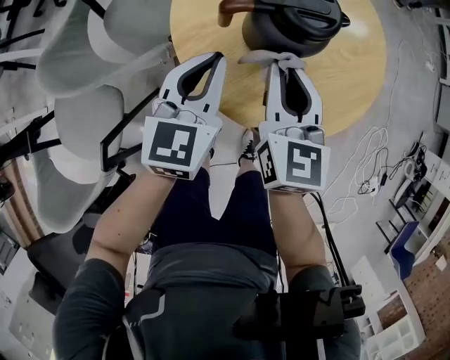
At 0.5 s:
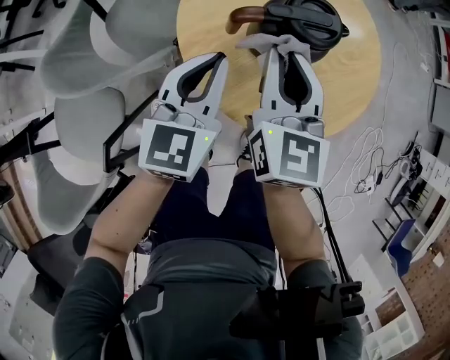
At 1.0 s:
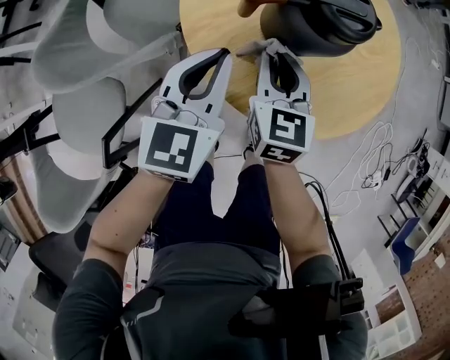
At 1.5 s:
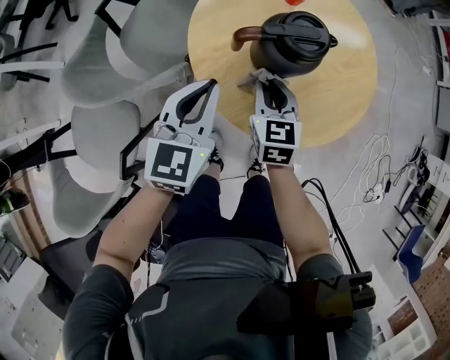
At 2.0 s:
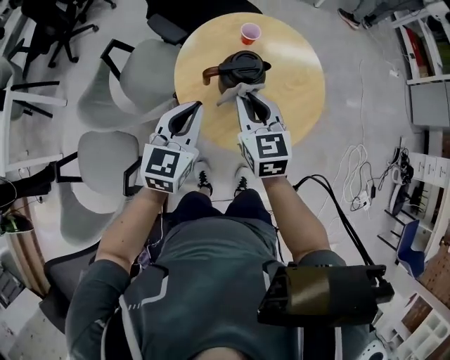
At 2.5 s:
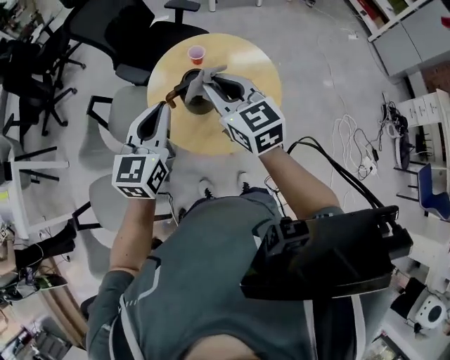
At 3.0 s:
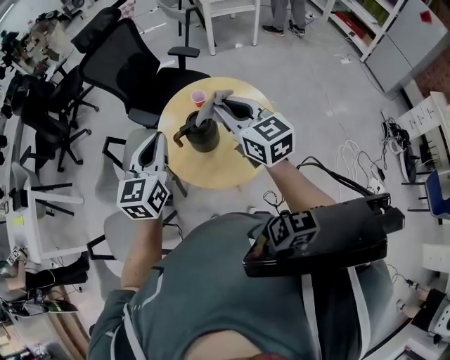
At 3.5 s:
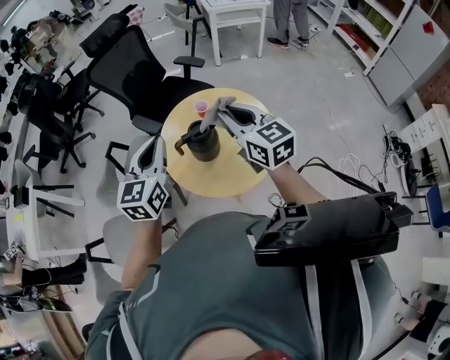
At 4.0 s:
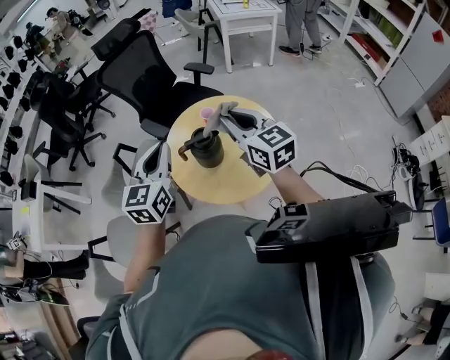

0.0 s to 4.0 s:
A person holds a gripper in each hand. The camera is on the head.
0.0 to 2.0 s: The right gripper swings up and down, roughly 20 cm each way, with 2 reversals. Meanwhile the left gripper moves upward, roughly 15 cm.
2.0 to 4.0 s: The right gripper travels upward and to the right by roughly 25 cm. The left gripper is displaced upward by some 20 cm.

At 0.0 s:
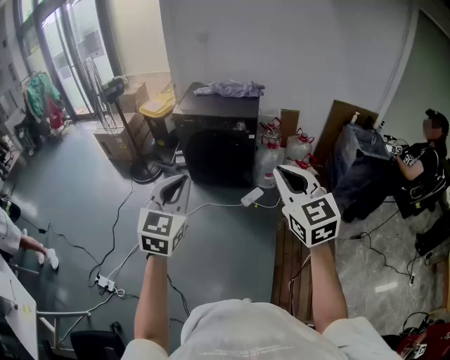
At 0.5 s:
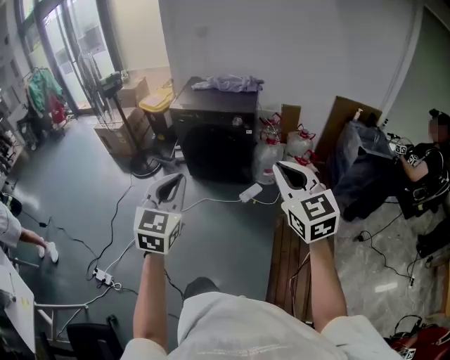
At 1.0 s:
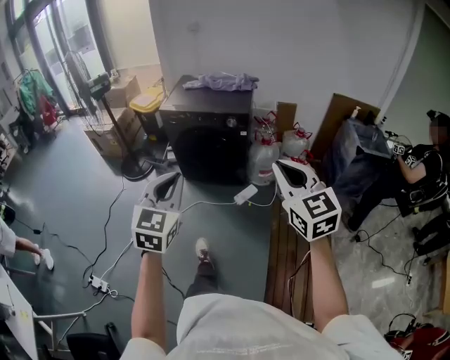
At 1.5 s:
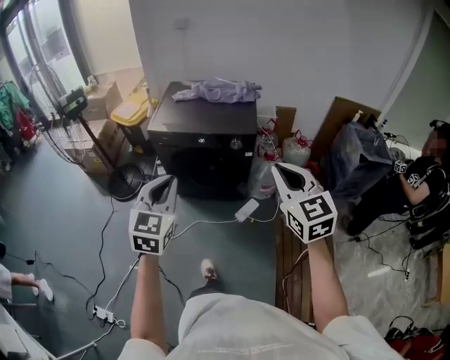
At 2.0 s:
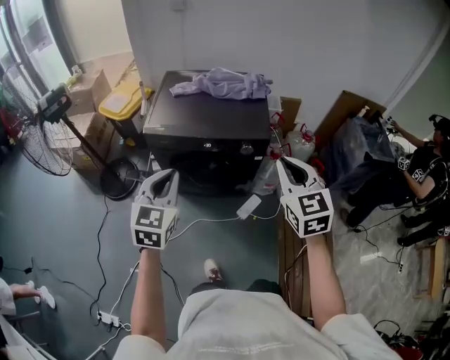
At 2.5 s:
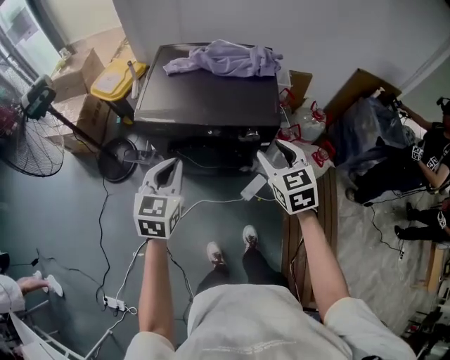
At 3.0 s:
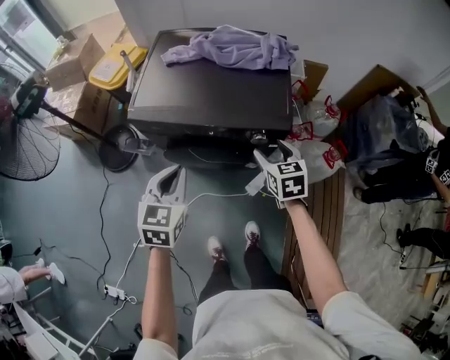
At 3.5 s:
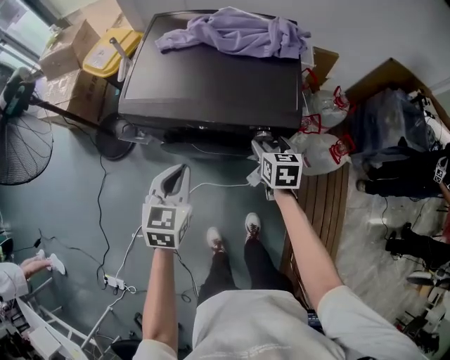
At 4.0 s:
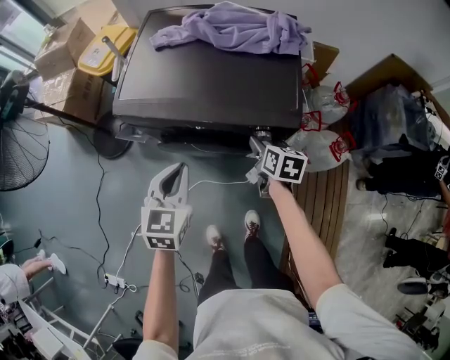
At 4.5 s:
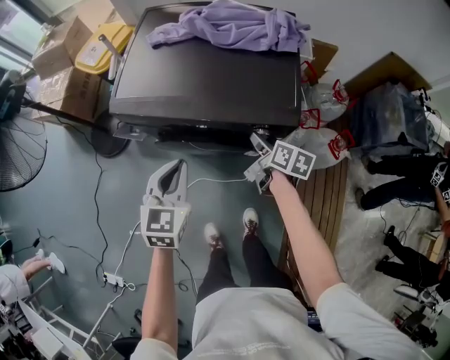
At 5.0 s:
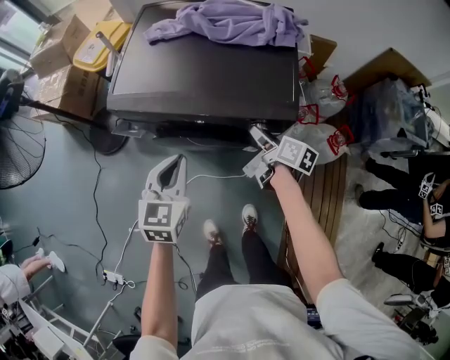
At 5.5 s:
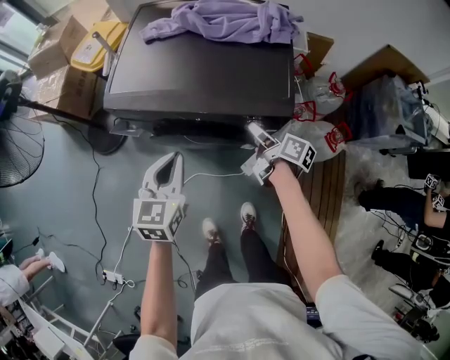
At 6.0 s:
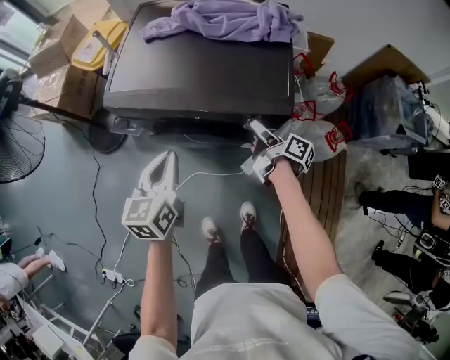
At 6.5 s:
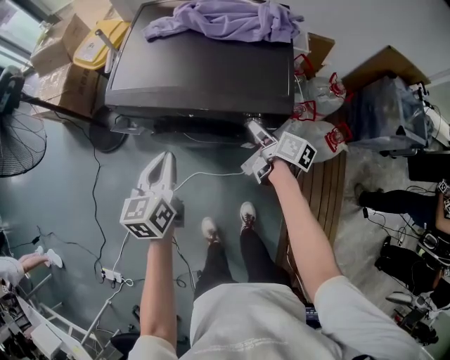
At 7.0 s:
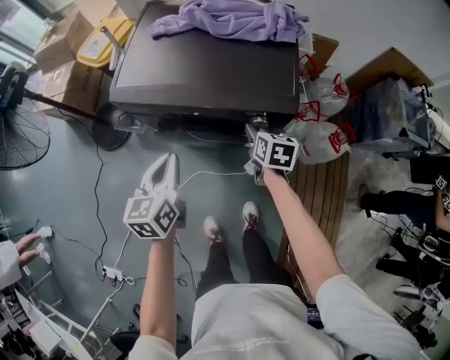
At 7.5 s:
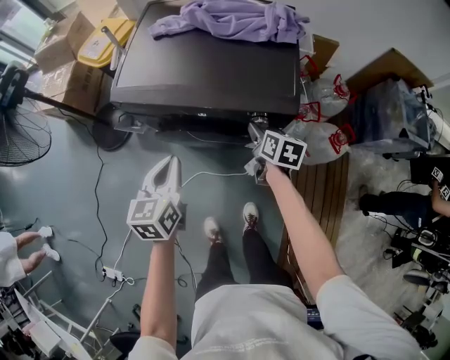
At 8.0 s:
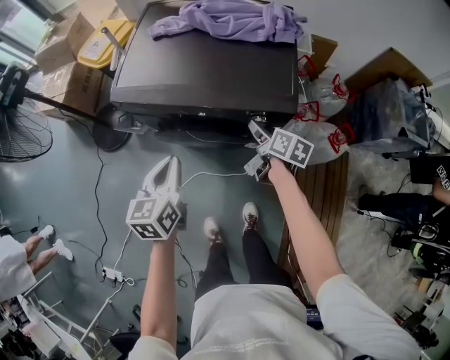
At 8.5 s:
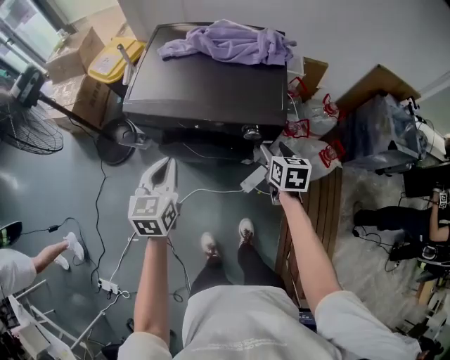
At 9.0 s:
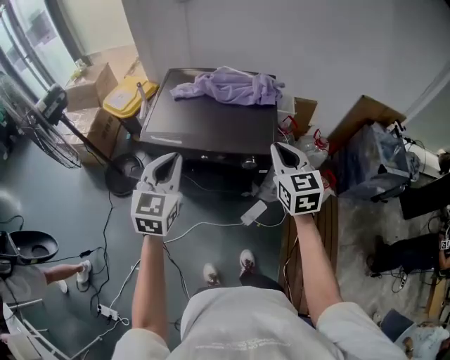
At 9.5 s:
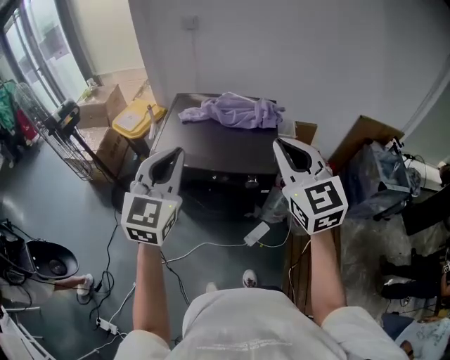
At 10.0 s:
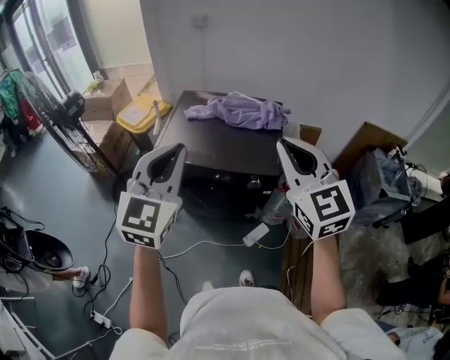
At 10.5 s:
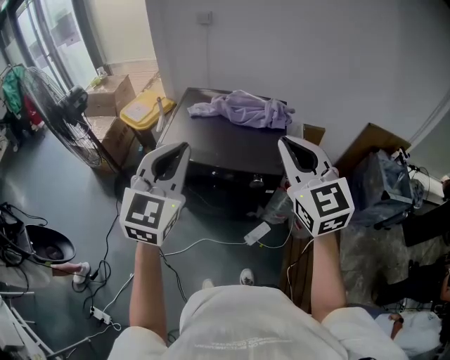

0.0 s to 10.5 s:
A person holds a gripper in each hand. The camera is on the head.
0.0 to 2.0 s: The two grippers travel together, forward, approximately 50 cm.
2.0 to 4.0 s: The right gripper goes some 40 cm downward and forward, rolls clockwise, seen from behind, by roughly 40 degrees, and opens, while the left gripper goes about 20 cm downward and forward.
4.0 to 6.5 s: The left gripper rotates roughly 30 degrees. Meanwhile the right gripper changes its angle by about 30 degrees.
6.5 to 8.5 s: The right gripper goes about 10 cm upward and backward, and rotates around the line of its fingers by approximately 40 degrees, counterclockwise from behind.
8.5 to 10.5 s: The two grippers go about 35 cm upward. The left gripper swivels approximately 40 degrees. The right gripper tilts its fingers roughly 40 degrees upward, and closes.

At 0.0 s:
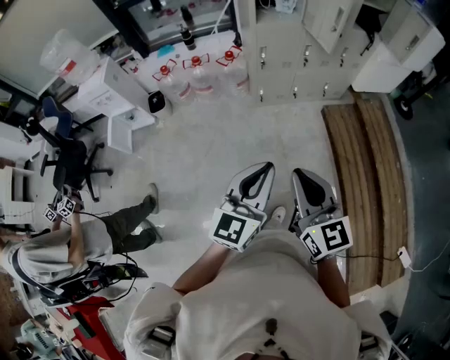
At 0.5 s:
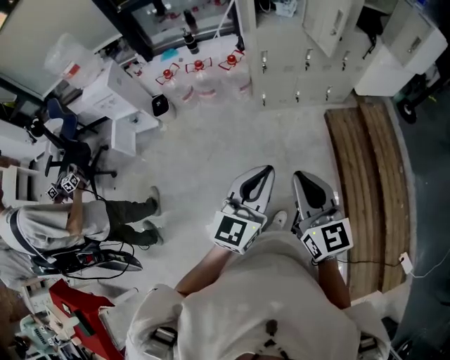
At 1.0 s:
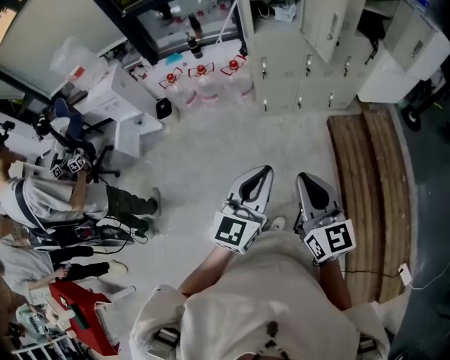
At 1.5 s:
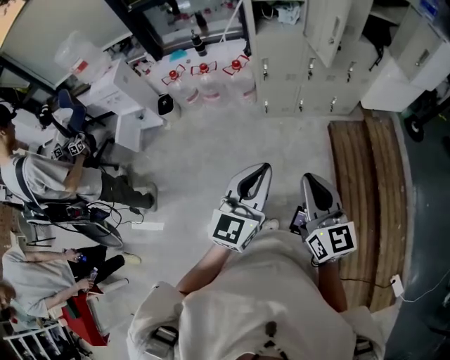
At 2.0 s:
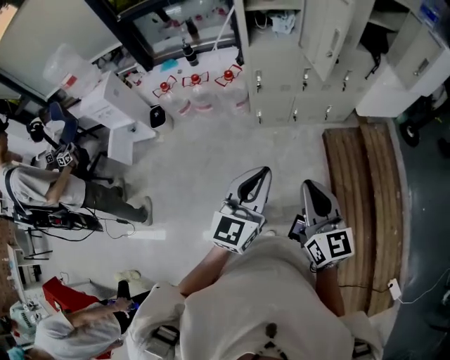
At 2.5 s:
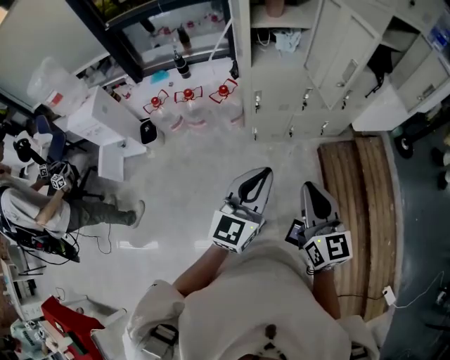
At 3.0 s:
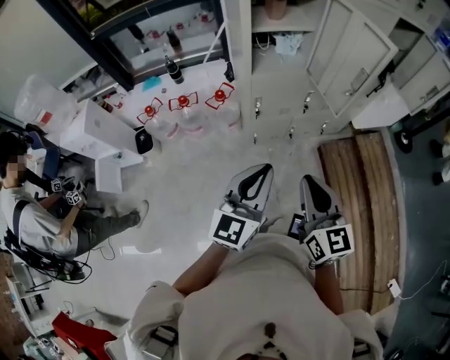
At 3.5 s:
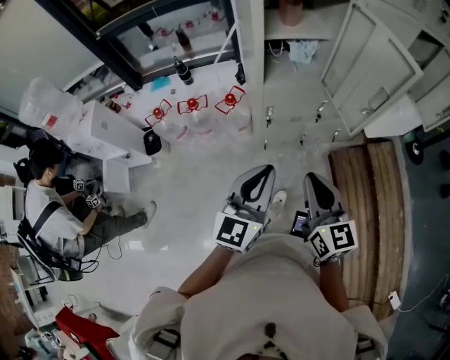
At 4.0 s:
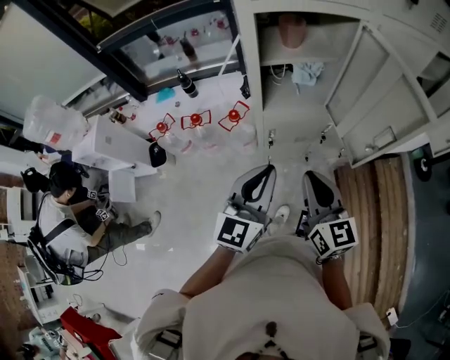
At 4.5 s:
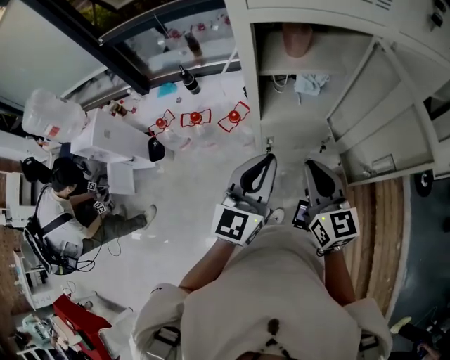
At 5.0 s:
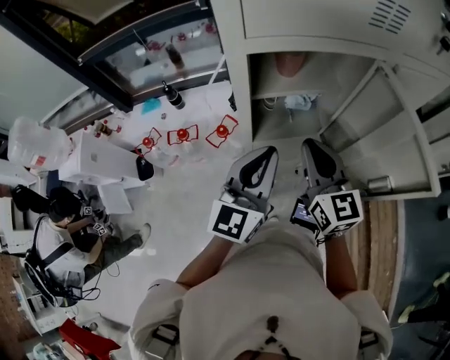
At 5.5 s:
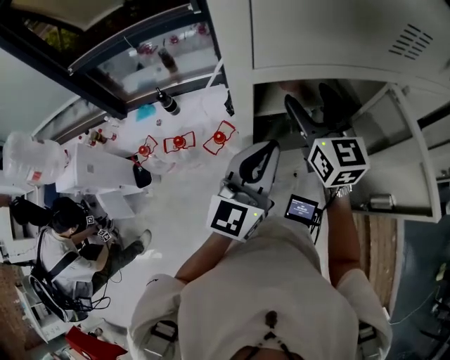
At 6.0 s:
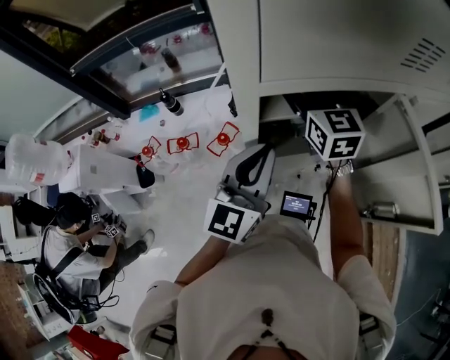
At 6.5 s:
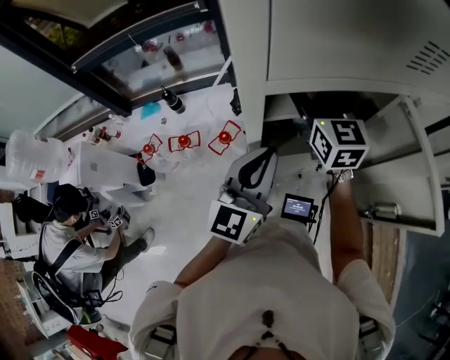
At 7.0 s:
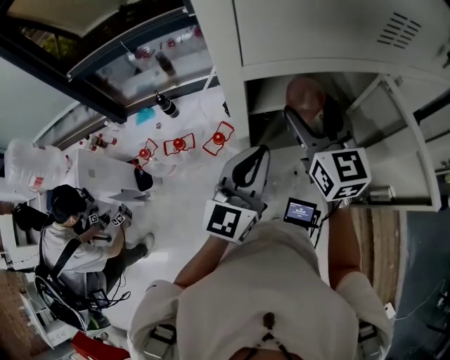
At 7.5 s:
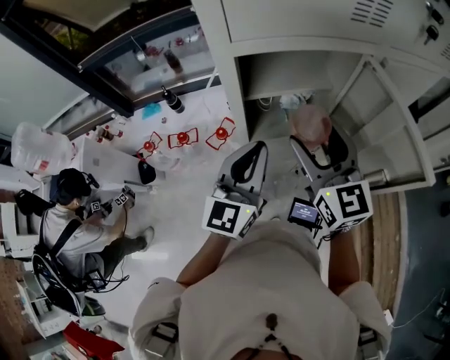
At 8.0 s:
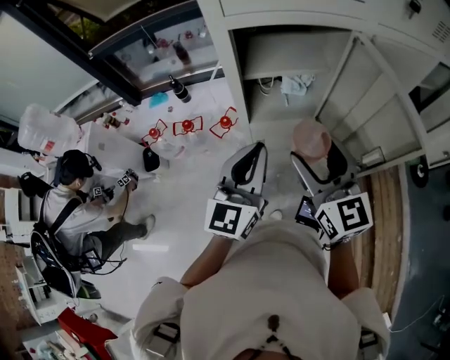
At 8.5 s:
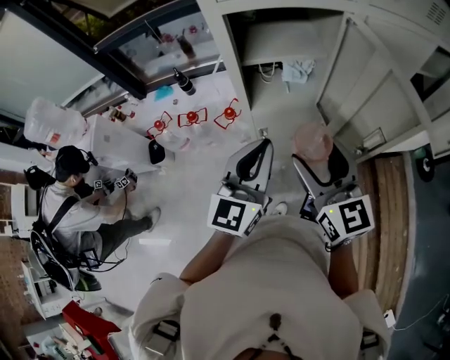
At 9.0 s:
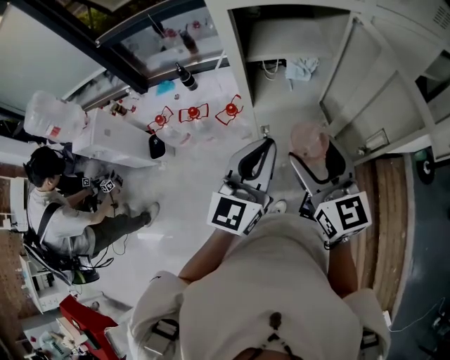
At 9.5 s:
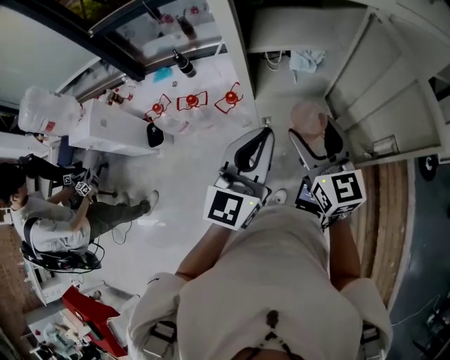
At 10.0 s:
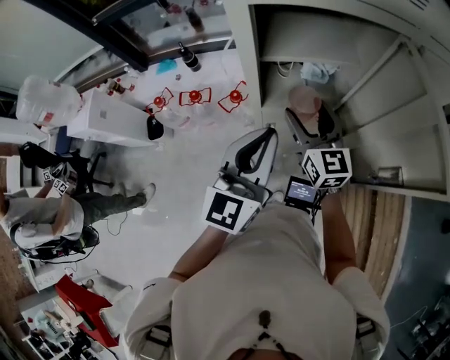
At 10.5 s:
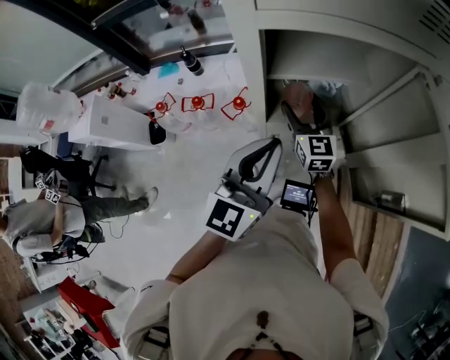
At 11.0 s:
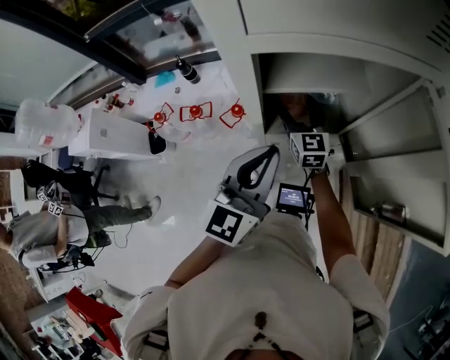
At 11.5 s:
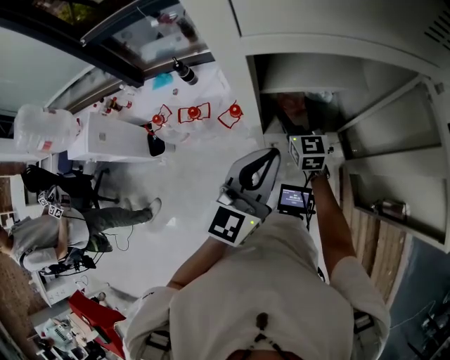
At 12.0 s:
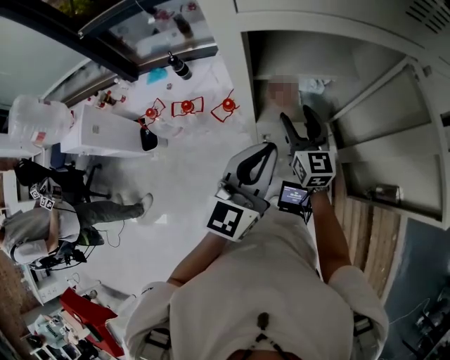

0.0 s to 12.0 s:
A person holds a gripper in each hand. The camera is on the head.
0.0 to 2.0 s: The right gripper is displaced to the right and forward by approximately 20 cm; the left gripper shifts approximately 15 cm forward and to the right.
2.0 to 4.0 s: Both grippers move forward, roughly 40 cm.
4.0 to 6.0 s: The left gripper is displaced forward by about 20 cm, while the right gripper is displaced forward by some 40 cm, and opens.
6.0 to 8.0 s: The right gripper is displaced backward by approximately 30 cm. Meanwhile the left gripper goes about 15 cm backward.
8.0 to 10.0 s: The right gripper goes approximately 15 cm forward and downward.
10.0 to 12.0 s: The right gripper travels downward and forward by approximately 5 cm.
